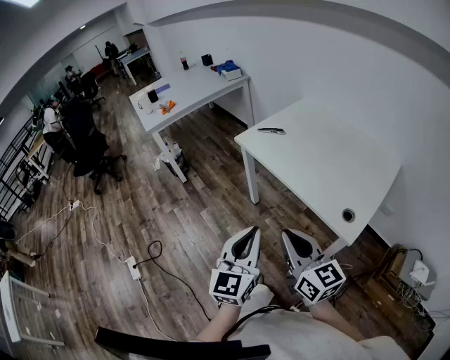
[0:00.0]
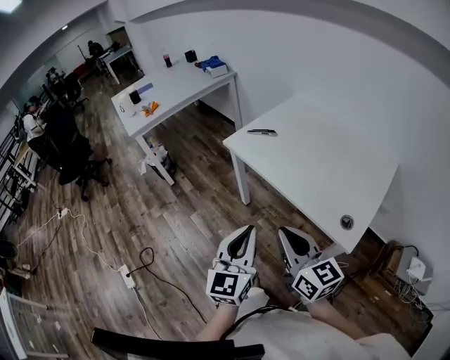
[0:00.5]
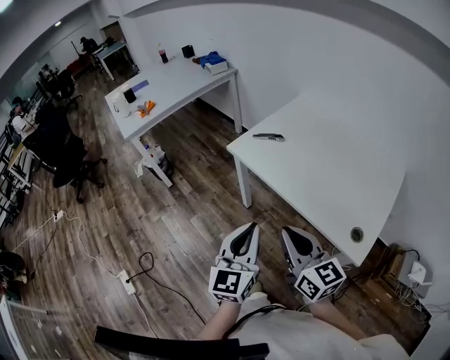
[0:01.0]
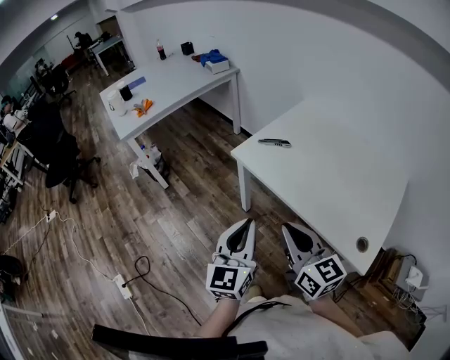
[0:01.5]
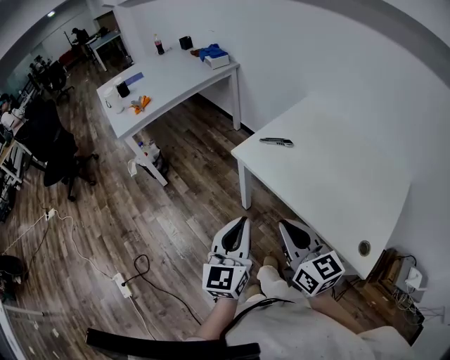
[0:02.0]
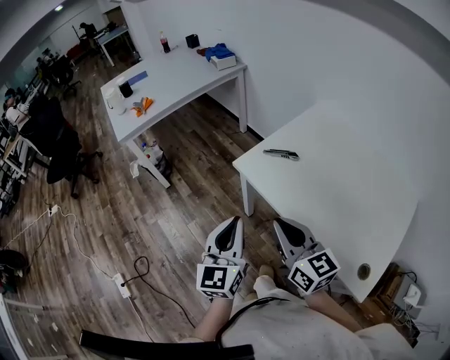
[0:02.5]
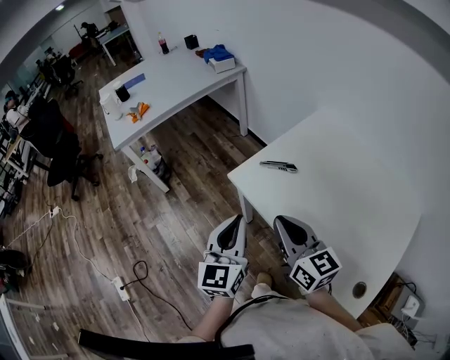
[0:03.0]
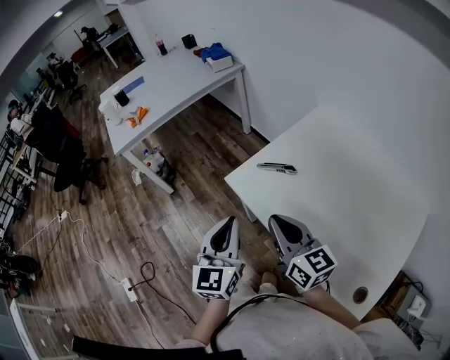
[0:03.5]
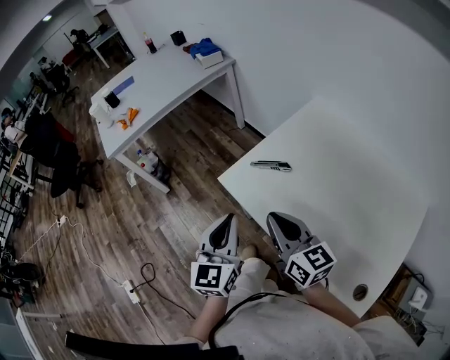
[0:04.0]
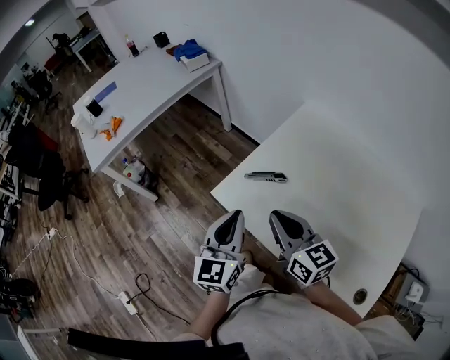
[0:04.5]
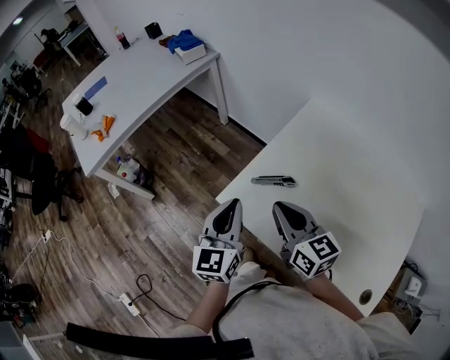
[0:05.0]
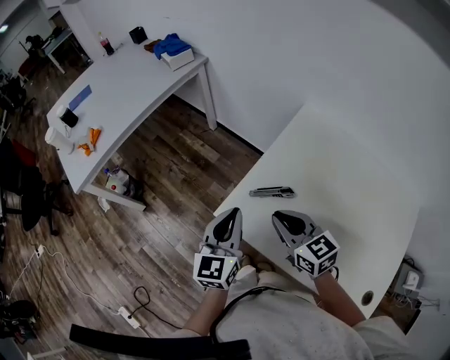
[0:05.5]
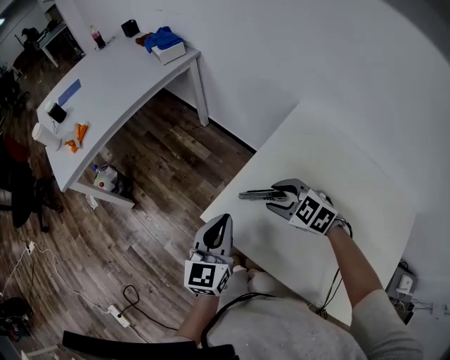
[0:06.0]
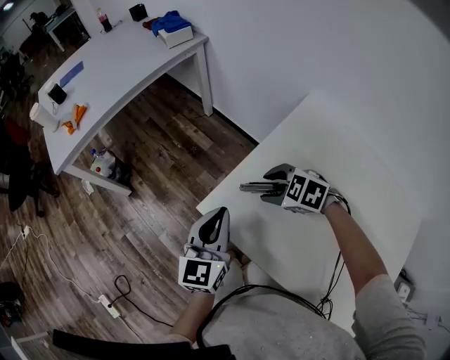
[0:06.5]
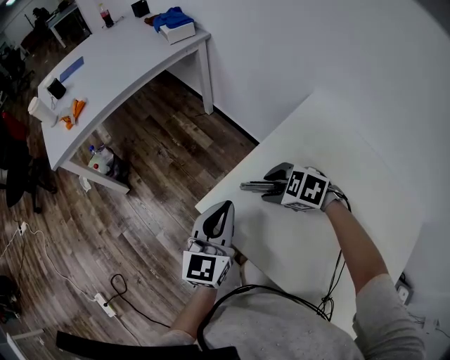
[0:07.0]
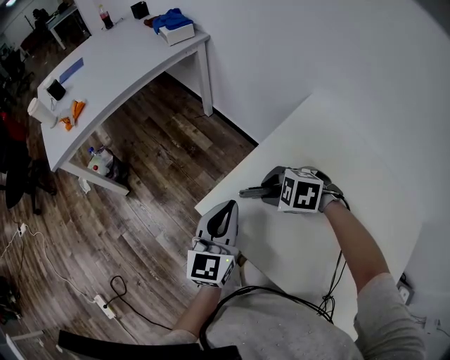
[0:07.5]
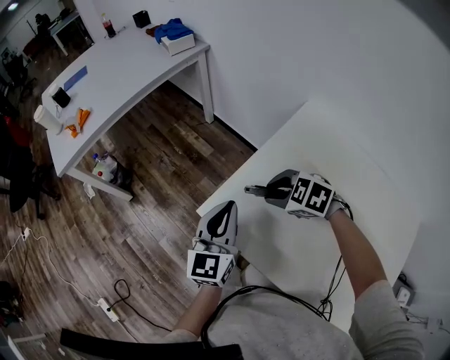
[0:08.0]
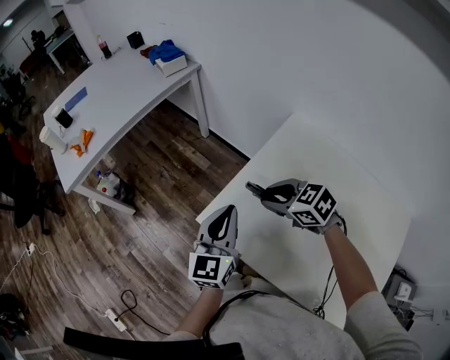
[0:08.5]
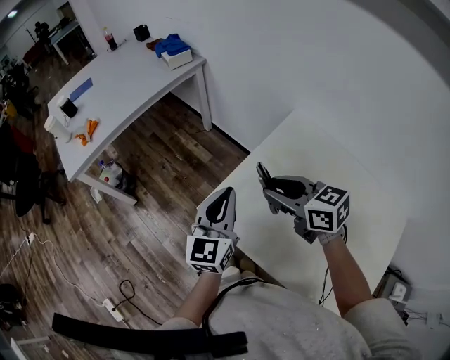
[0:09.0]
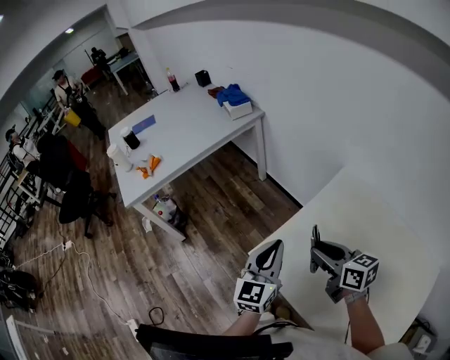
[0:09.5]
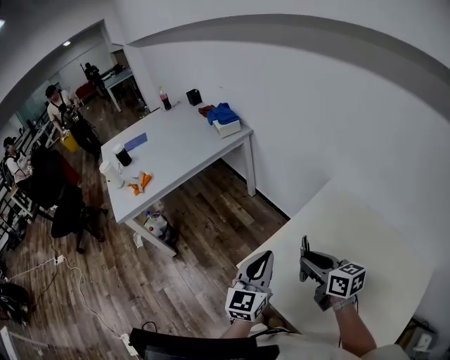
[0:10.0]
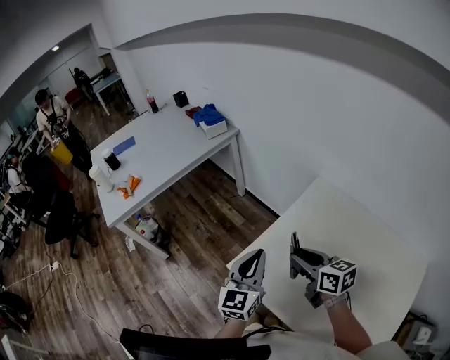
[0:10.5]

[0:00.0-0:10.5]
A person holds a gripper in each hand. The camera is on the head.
0:00.0 to 0:02.0: Both grippers move forward, roughly 25 cm.
0:02.0 to 0:04.0: The two grippers go approximately 20 cm forward.
0:04.0 to 0:06.5: The two grippers go approximately 25 cm forward and downward. The right gripper points its fingers some 50 degrees further downward, and opens its fingers.
0:06.5 to 0:08.5: The left gripper travels upward by about 5 cm; the right gripper goes approximately 10 cm upward, and changes its angle by roughly 30 degrees.
0:08.5 to 0:10.5: The right gripper travels upward by approximately 5 cm, and turns by some 40 degrees.

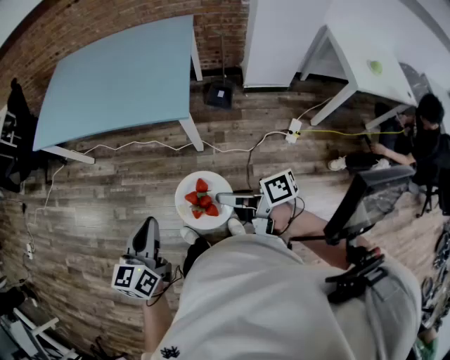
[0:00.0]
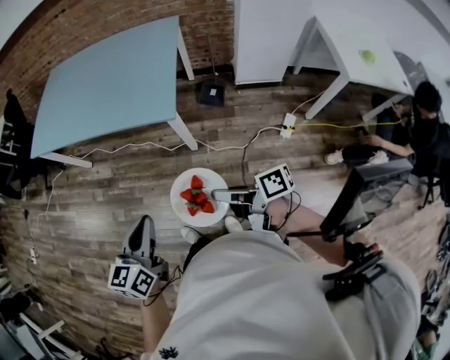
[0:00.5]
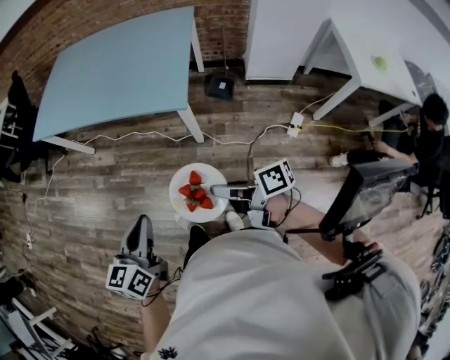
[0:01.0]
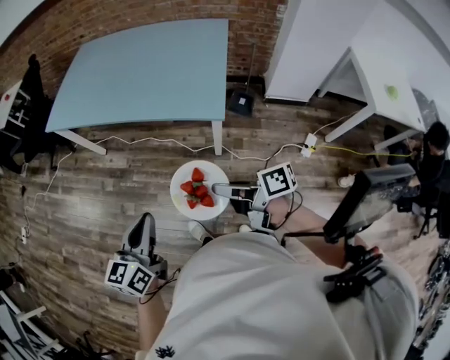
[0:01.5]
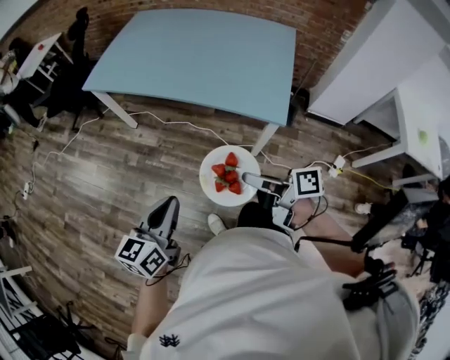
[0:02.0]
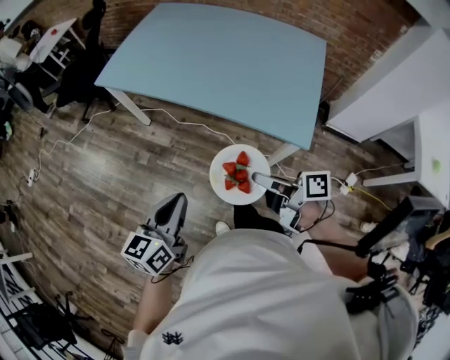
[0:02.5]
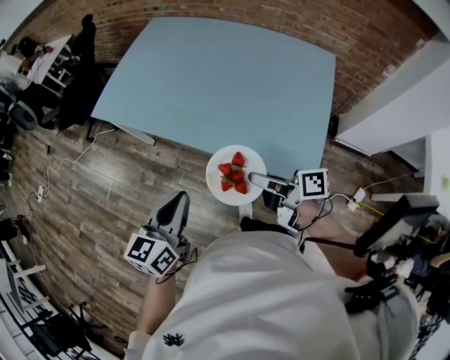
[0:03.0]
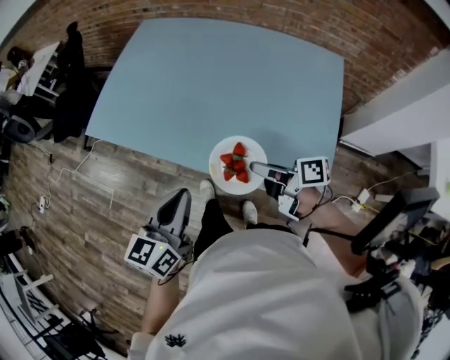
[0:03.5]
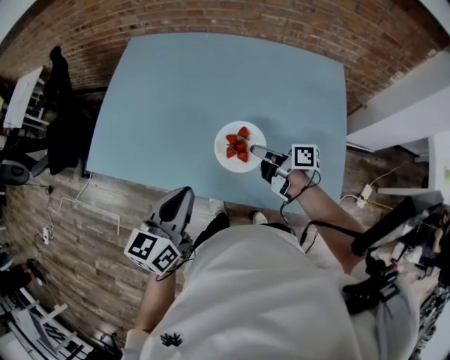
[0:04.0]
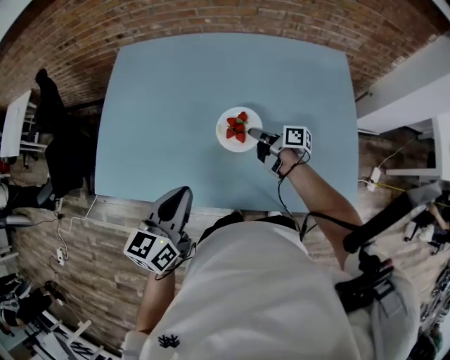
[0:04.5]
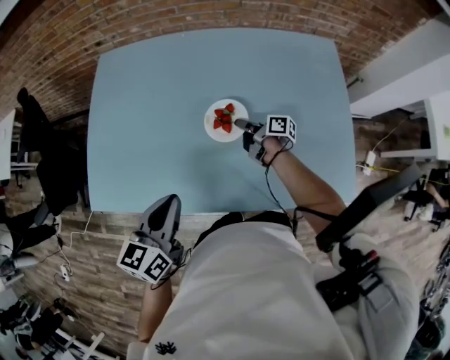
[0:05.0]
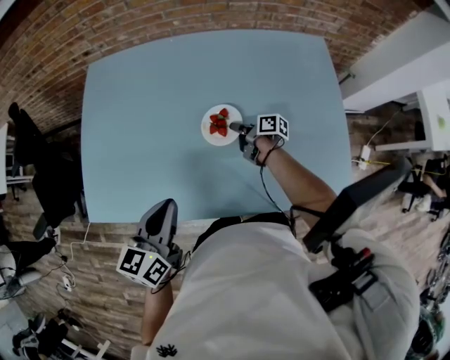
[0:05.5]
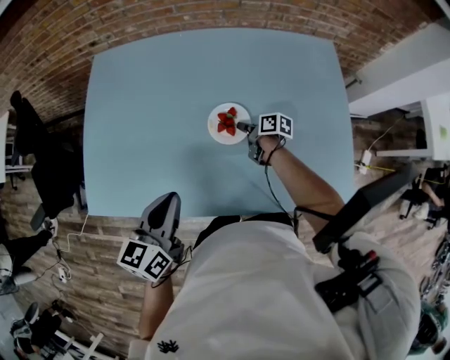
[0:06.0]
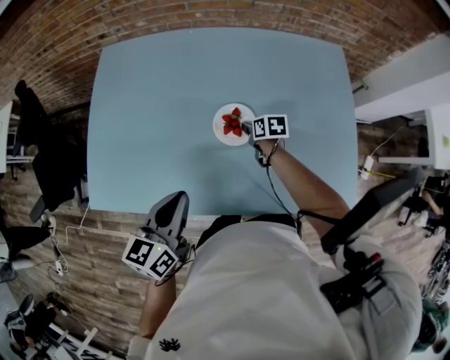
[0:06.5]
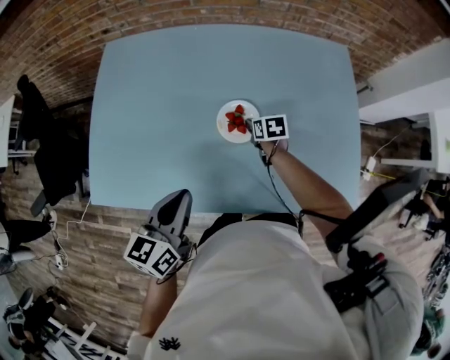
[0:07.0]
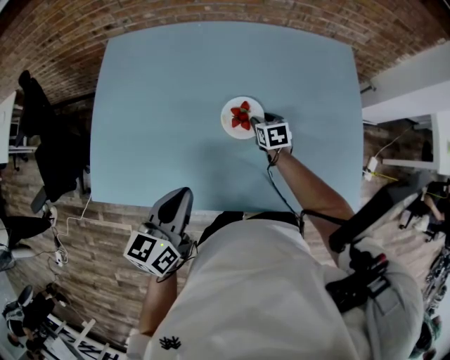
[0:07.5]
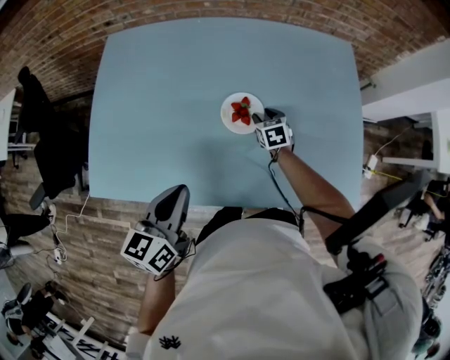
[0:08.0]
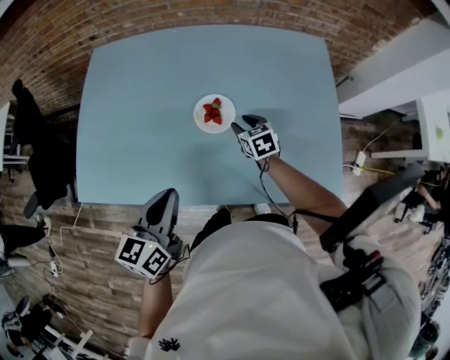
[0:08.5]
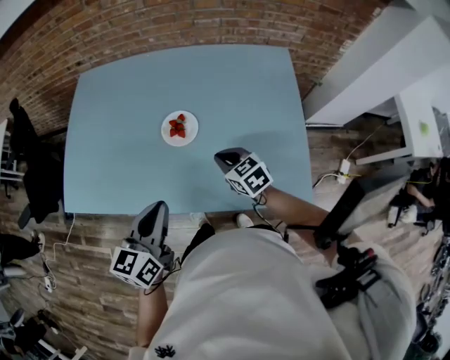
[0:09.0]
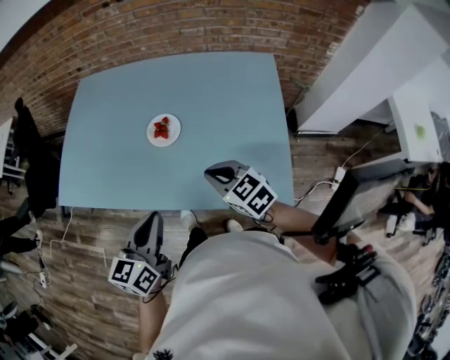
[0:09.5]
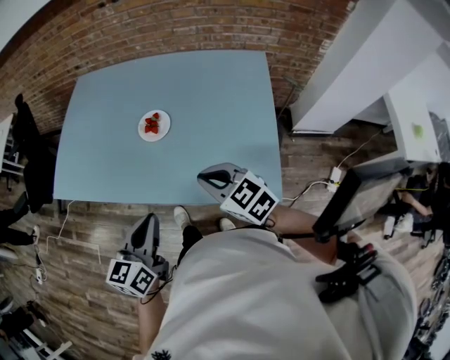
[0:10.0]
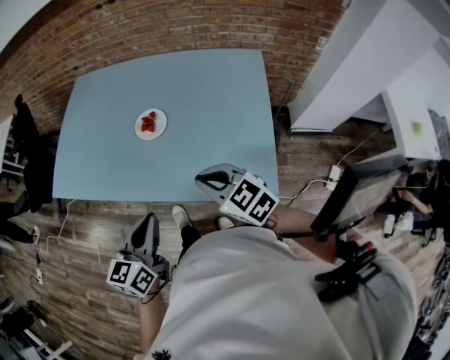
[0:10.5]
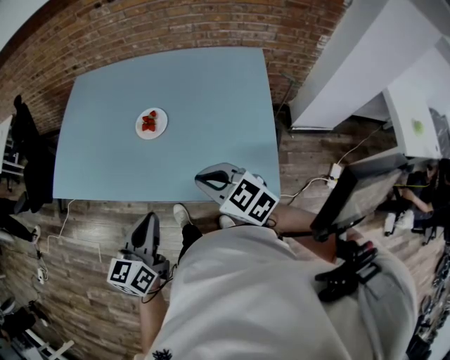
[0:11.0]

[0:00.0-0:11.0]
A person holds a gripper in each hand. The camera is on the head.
0:00.0 to 0:02.0: Both grippers move to the left and forward, some 25 cm.
0:02.0 to 0:03.5: Both grippers are carried forward, roughly 40 cm.
0:03.5 to 0:05.5: The right gripper moves about 40 cm, and changes its angle by roughly 40 degrees. Meanwhile the left gripper ends up some 25 cm from where it was, and changes its angle by about 20 degrees.
0:05.5 to 0:07.5: The right gripper twists approximately 50 degrees counterclockwise, seen from behind, and opens up.
0:07.5 to 0:09.0: The left gripper is displaced to the right and backward by some 15 cm, while the right gripper moves backward, upward and to the right, approximately 25 cm, turns by approximately 30 degrees, and closes up.
0:09.0 to 0:11.0: The left gripper goes roughly 15 cm backward and to the right. The right gripper travels backward and upward by about 20 cm, and rotates some 20 degrees.

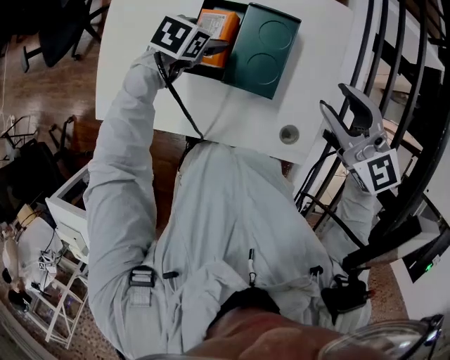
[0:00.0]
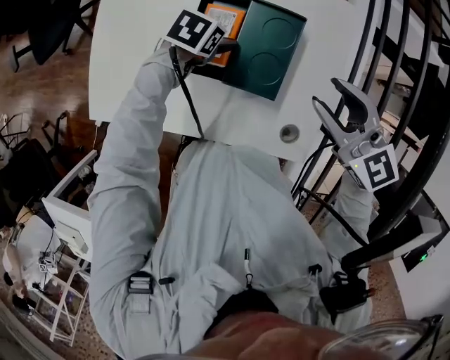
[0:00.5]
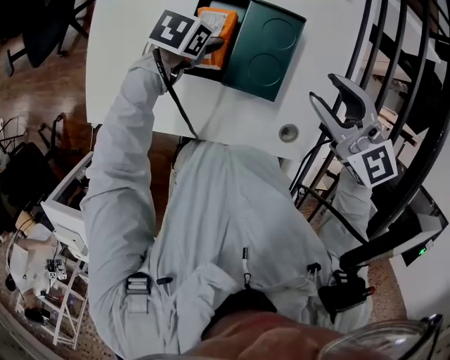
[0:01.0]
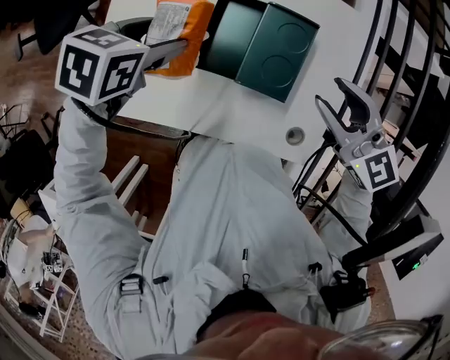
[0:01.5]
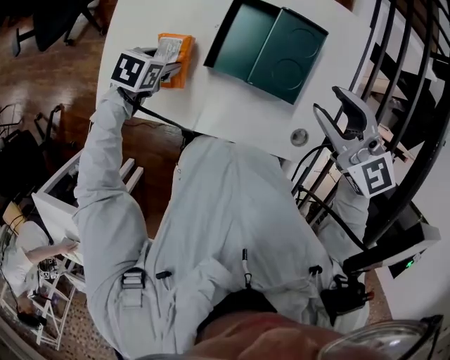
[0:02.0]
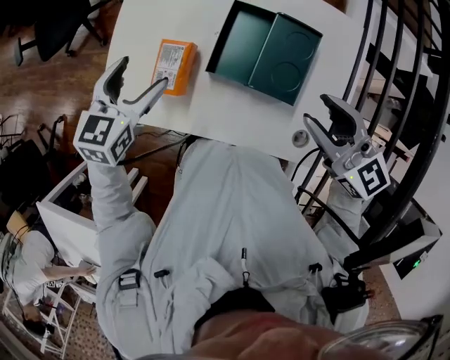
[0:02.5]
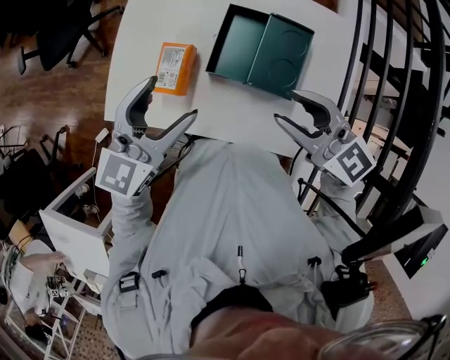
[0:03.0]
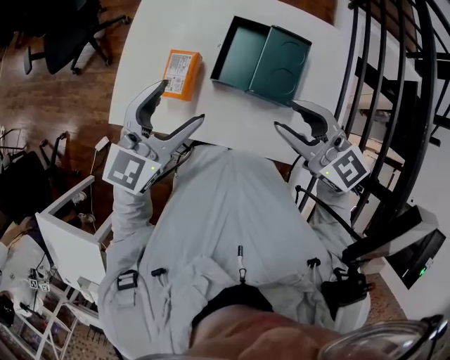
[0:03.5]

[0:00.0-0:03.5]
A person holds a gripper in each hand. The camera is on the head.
0:00.0 to 0:02.0: The right gripper shifts roughly 10 cm to the left, while the left gripper moves to the left and backward, approximately 20 cm, and moves roughly 15 cm upward and comes back.
0:02.0 to 0:03.5: The right gripper moves about 5 cm; the left gripper is displaced upward and to the right by approximately 25 cm, and angles its fingers upward, by some 50 degrees.

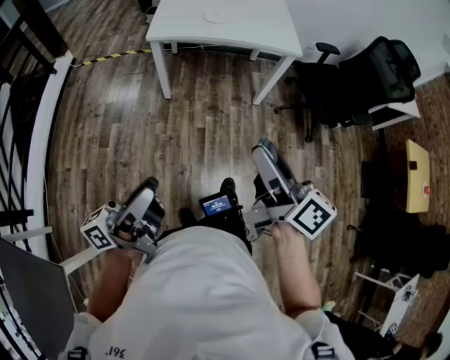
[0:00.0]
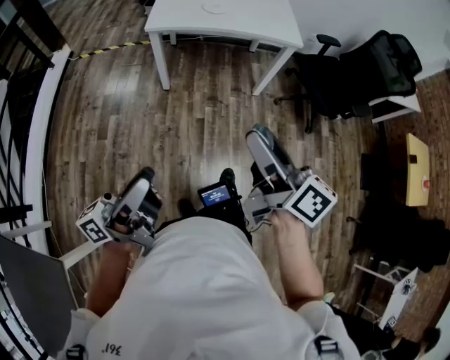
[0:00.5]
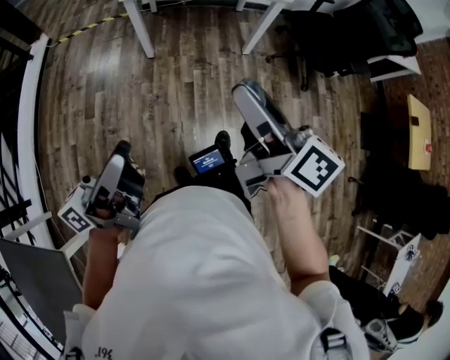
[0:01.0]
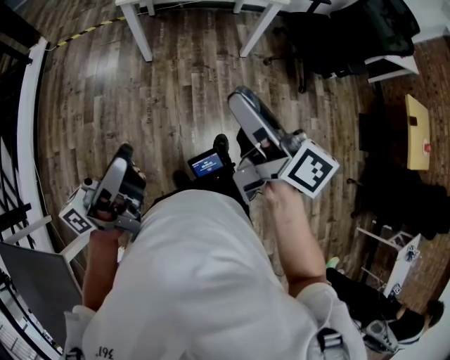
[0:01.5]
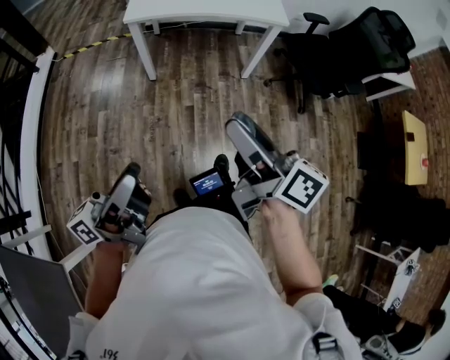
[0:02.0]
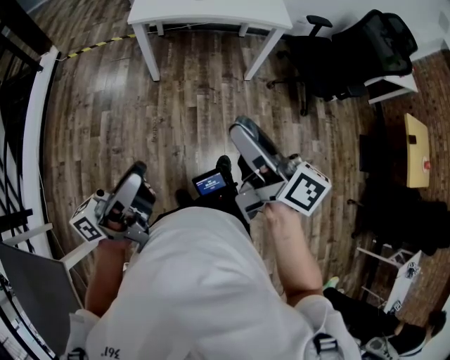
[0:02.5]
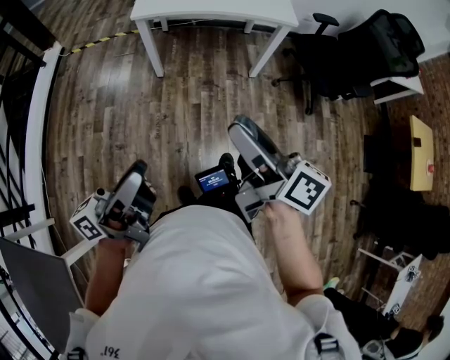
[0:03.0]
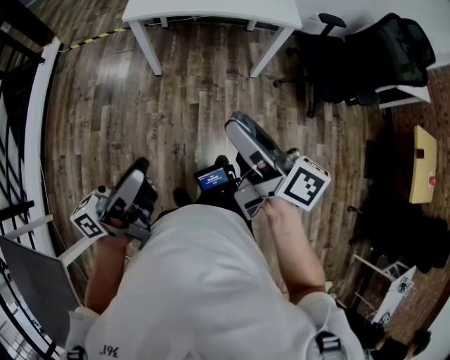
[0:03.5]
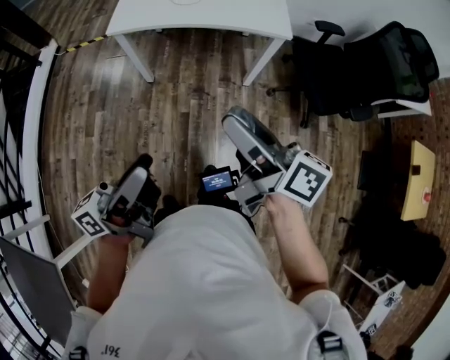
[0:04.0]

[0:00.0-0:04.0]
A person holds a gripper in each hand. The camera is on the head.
0:00.0 to 0:02.0: The grippers stay close to where they were, moving slightly.
0:02.0 to 0:04.0: Both grippers travel together forward and to the right, approximately 20 cm.
